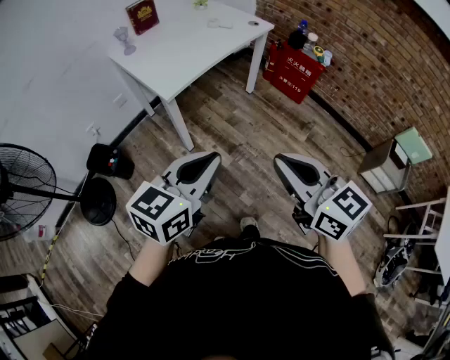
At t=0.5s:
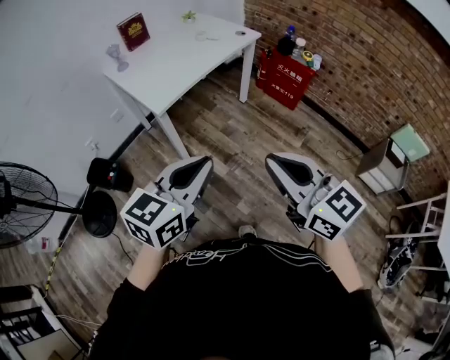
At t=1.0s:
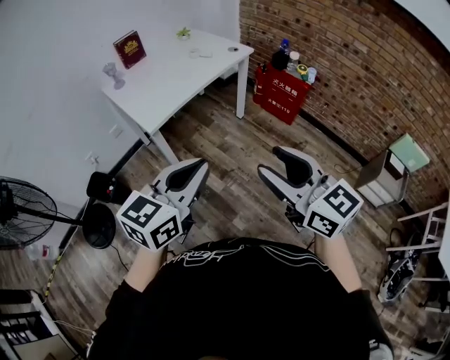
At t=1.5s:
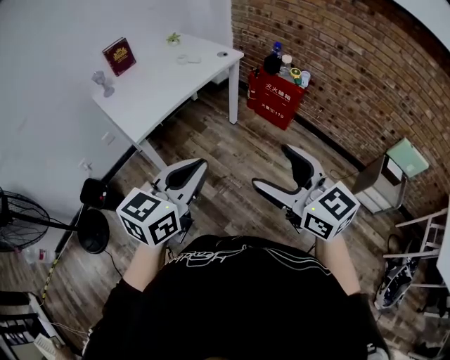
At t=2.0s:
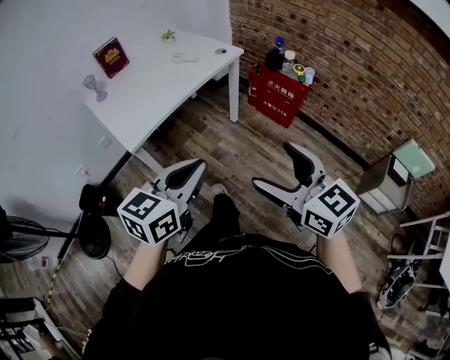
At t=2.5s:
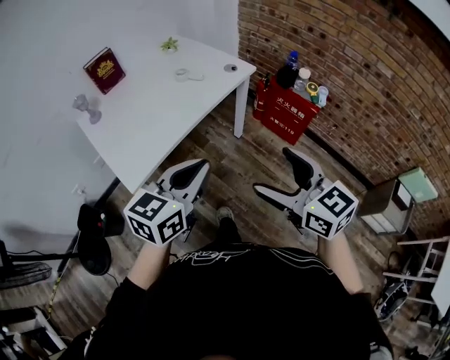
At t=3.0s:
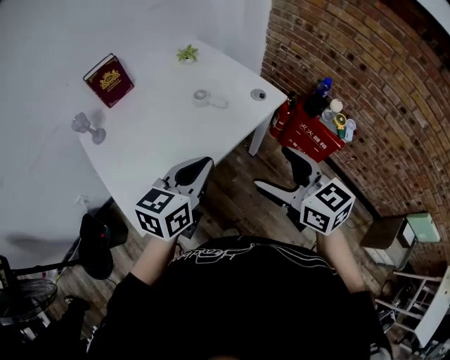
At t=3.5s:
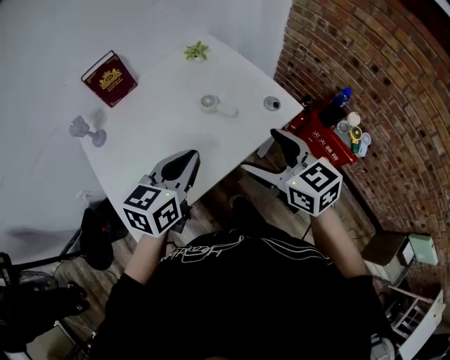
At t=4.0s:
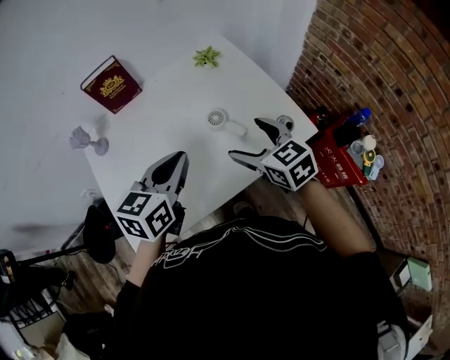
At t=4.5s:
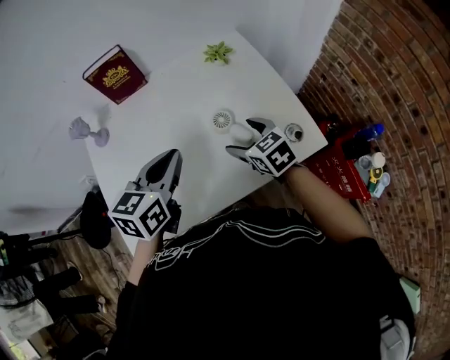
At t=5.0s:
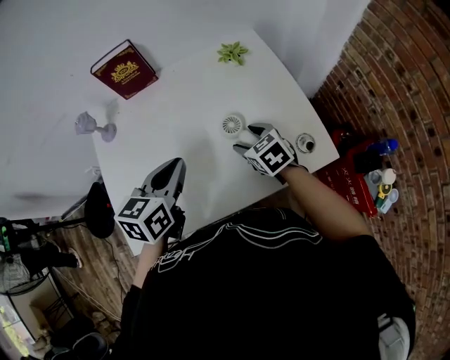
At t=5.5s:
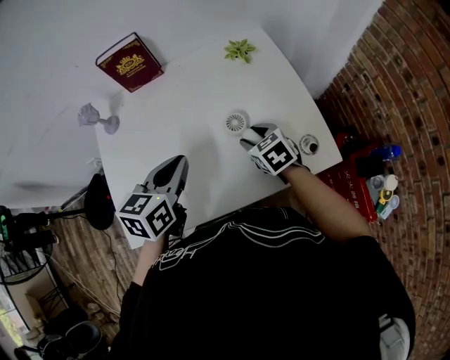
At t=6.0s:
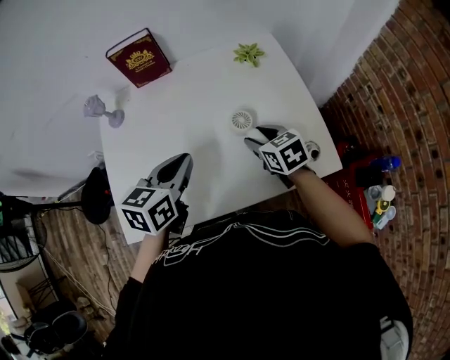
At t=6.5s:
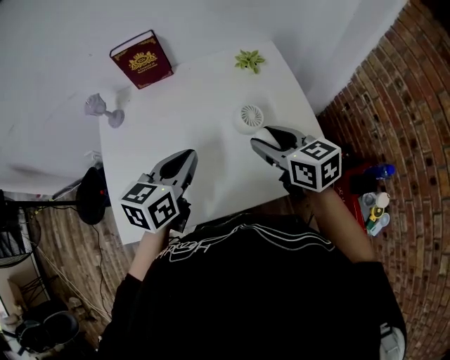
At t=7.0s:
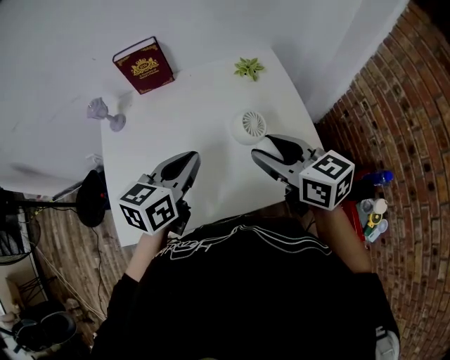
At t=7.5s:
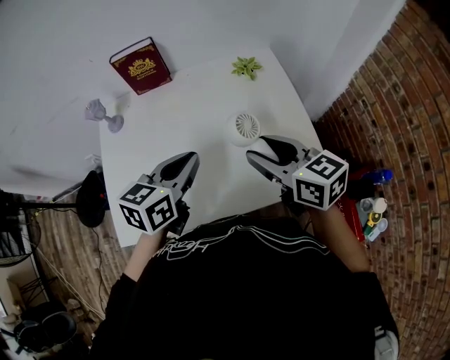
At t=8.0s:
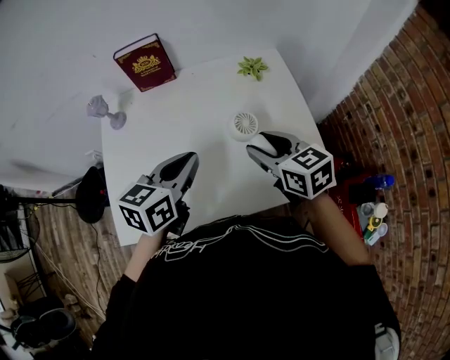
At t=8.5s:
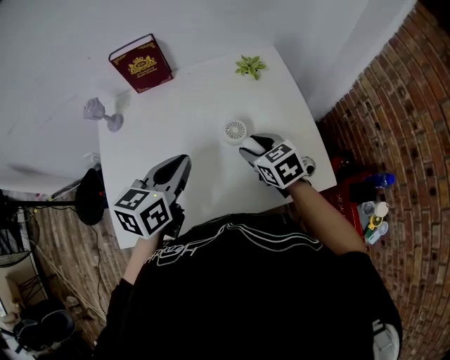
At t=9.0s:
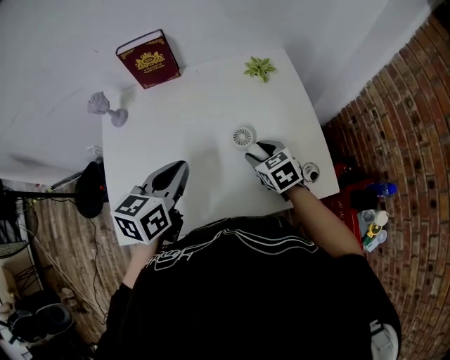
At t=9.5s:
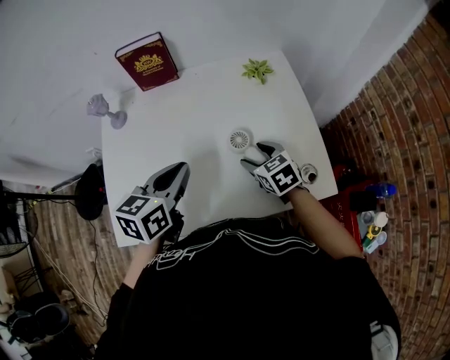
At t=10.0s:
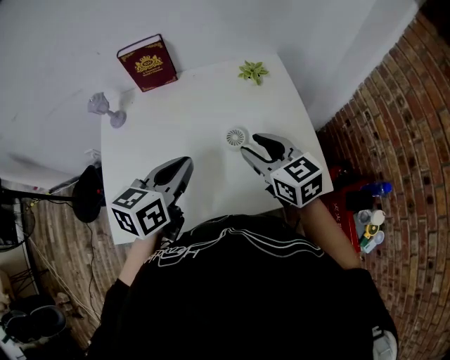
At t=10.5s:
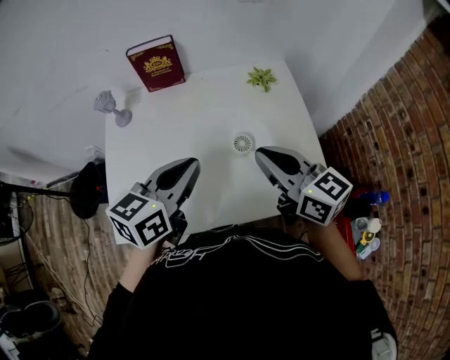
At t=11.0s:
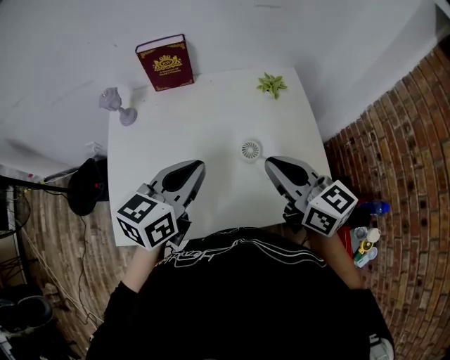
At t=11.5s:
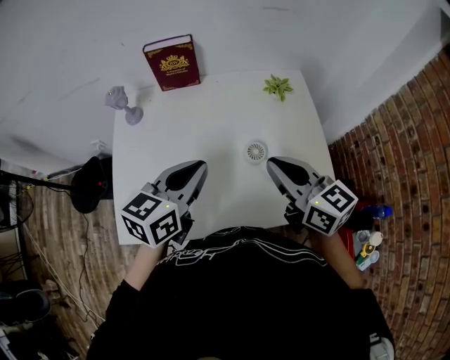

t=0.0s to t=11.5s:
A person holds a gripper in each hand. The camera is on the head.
t=0.0s to t=2.0s: Both grippers move to the right and forward, about 20 cm. The right gripper opens.
t=2.0s to t=4.0s: The pair of grippers is taken approximately 60 cm. The right gripper rotates some 30 degrees. The left gripper changes its angle by some 30 degrees.
t=4.0s to t=6.0s: The right gripper moves downward and forward, some 15 cm, and closes up. The left gripper moves downward, about 5 cm.
t=6.0s to t=7.5s: The right gripper heads upward, covering roughly 15 cm, and swivels approximately 20 degrees. Meanwhile the left gripper shifts by roughly 5 cm.
t=7.5s to t=9.5s: The right gripper moves downward, approximately 20 cm, and swivels roughly 30 degrees. Meanwhile the left gripper moves approximately 5 cm.
t=9.5s to t=11.5s: The right gripper moves upward, about 20 cm, tips its fingers upward by some 30 degrees, and closes up.

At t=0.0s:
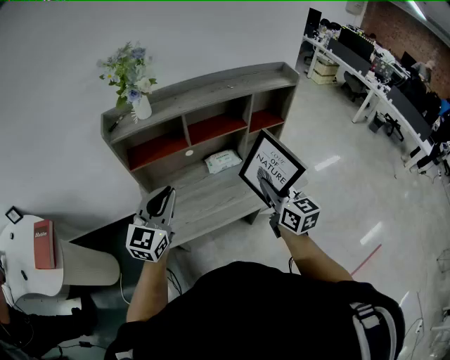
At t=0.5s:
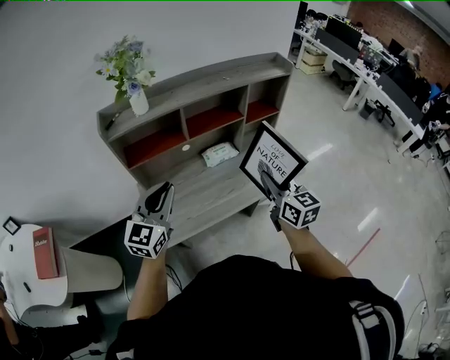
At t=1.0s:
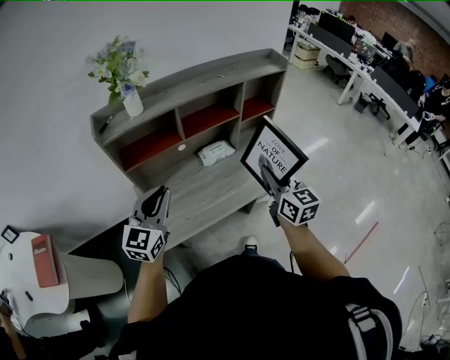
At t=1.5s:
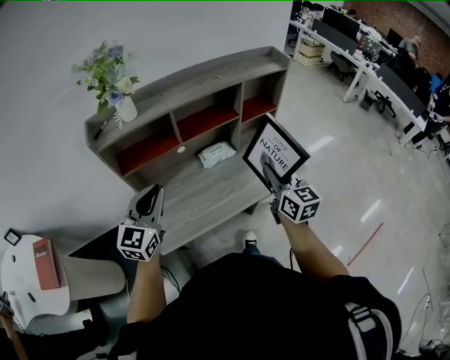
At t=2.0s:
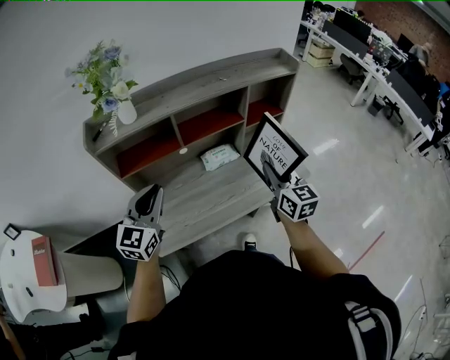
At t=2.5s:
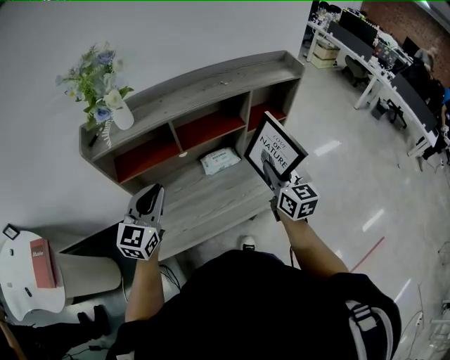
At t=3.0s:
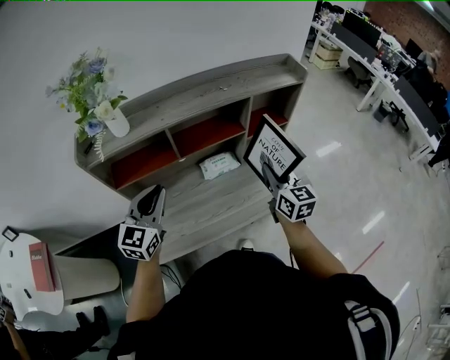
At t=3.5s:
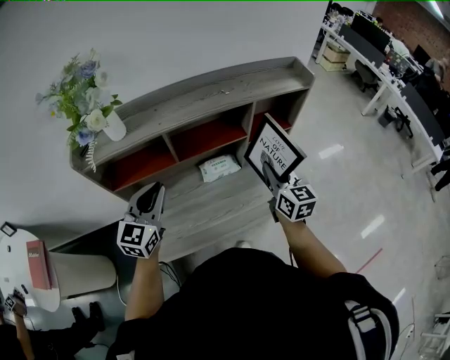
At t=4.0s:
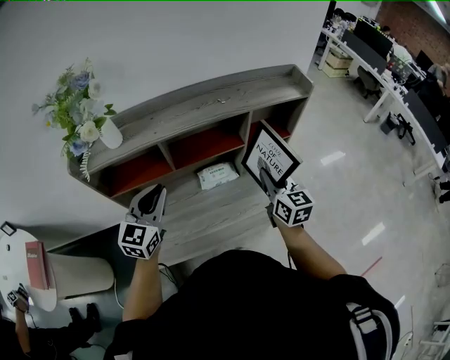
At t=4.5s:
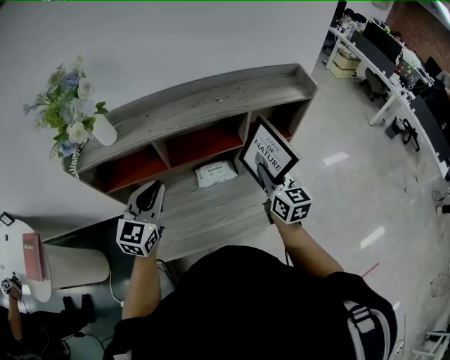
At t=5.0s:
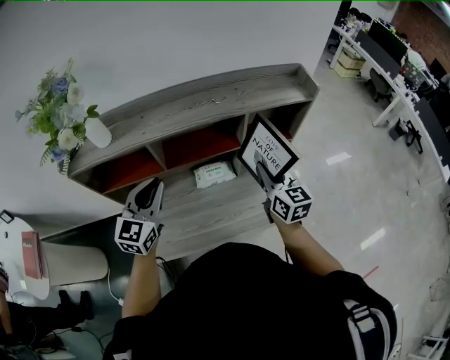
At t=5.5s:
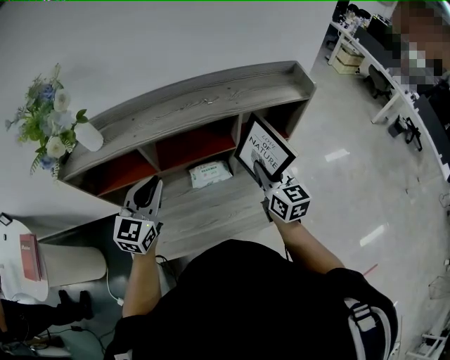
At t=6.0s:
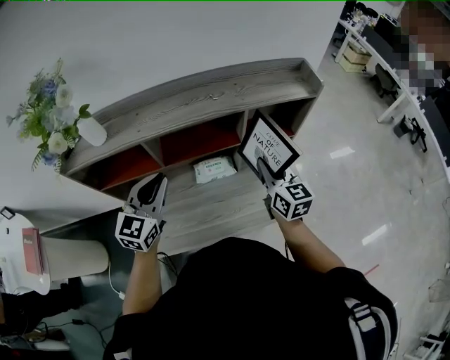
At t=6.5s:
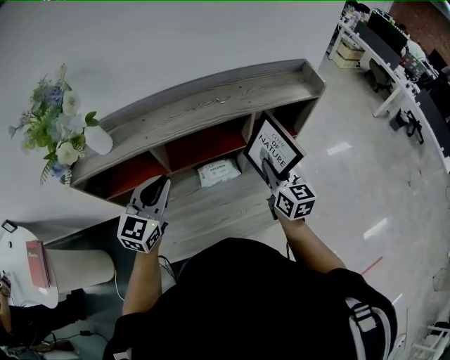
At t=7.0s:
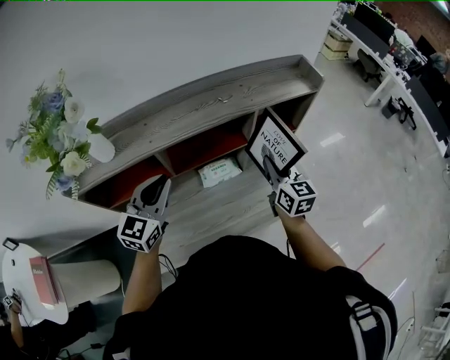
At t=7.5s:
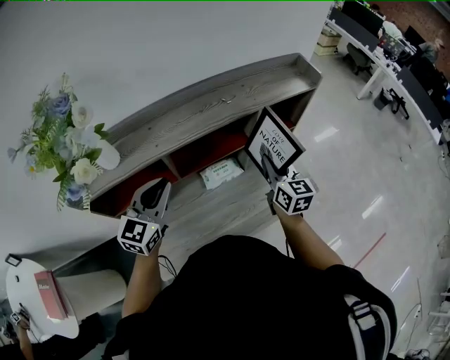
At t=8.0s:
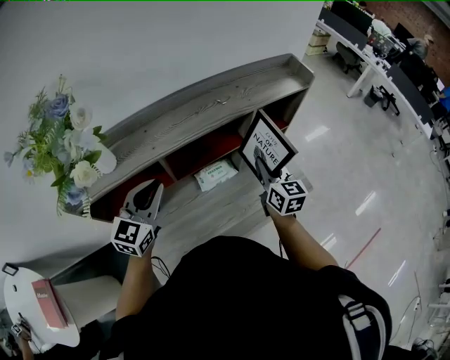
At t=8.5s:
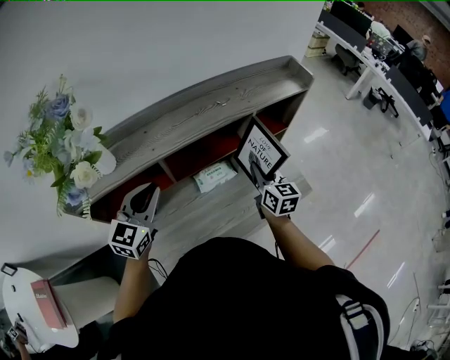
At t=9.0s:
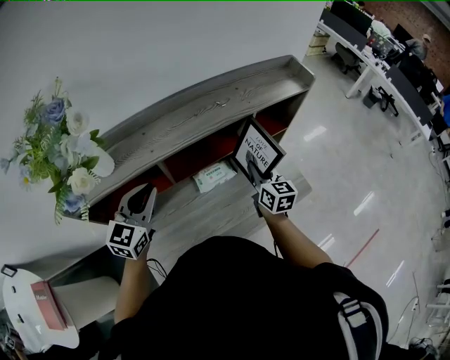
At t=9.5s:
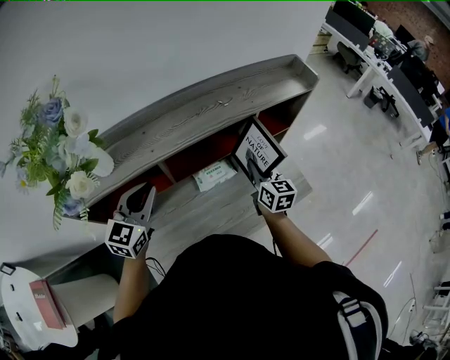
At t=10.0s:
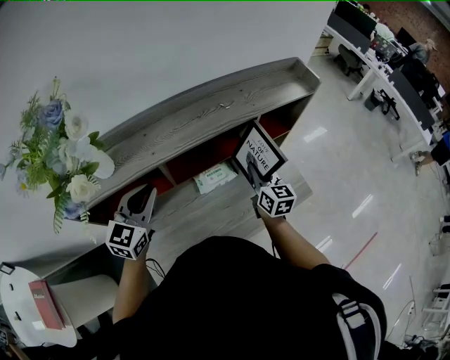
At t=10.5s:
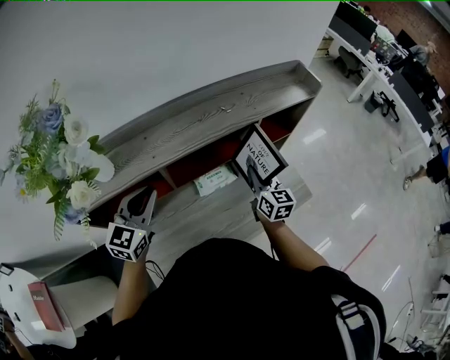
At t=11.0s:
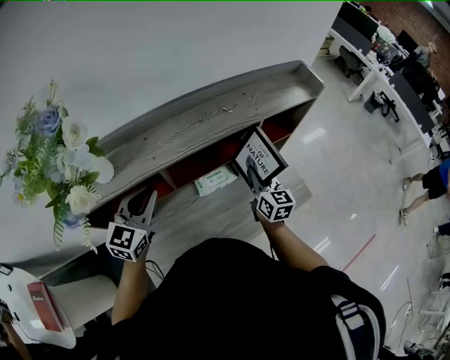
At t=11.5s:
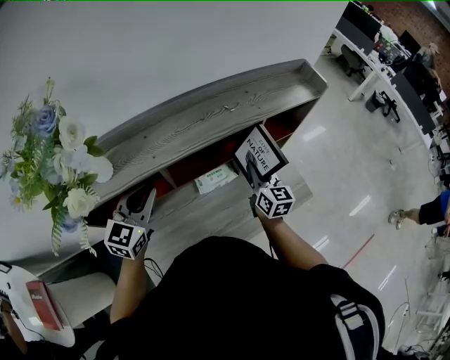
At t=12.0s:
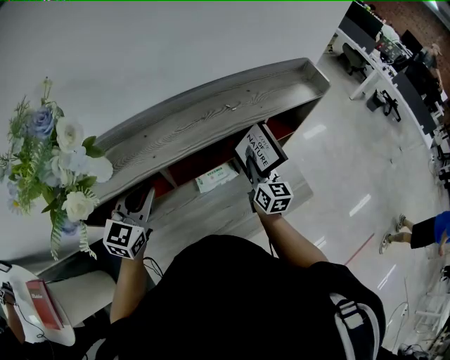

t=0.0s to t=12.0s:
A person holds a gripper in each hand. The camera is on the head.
t=0.0s to t=2.0s: Both grippers move forward, some 10 cm.
t=2.0s to t=4.0s: The left gripper is displaced forward and to the right by about 15 cm. Meanwhile the right gripper moves forward, some 15 cm.
t=4.0s to t=6.0s: The right gripper travels forward by about 5 cm. The left gripper travels to the right by about 5 cm.
t=6.0s to t=8.0s: The left gripper goes about 10 cm to the left, while the right gripper is displaced to the left by about 5 cm.
t=8.0s to t=10.0s: The right gripper shifts by about 5 cm.
t=10.0s to t=12.0s: The grippers make only small movements.

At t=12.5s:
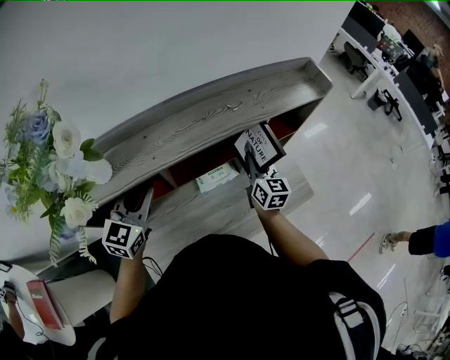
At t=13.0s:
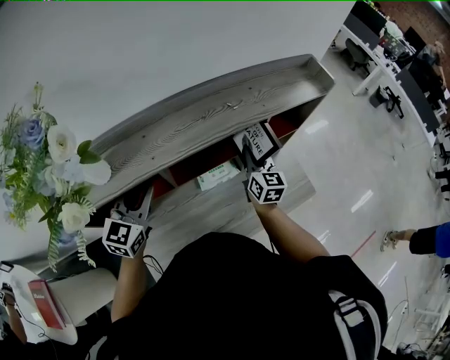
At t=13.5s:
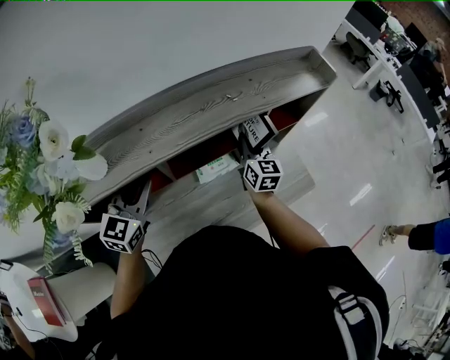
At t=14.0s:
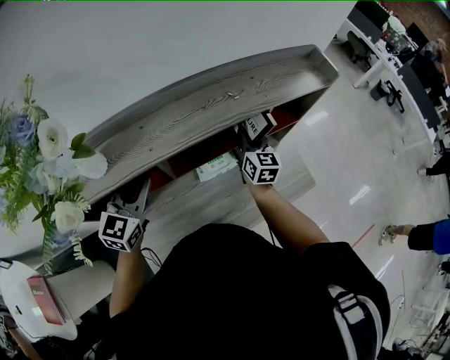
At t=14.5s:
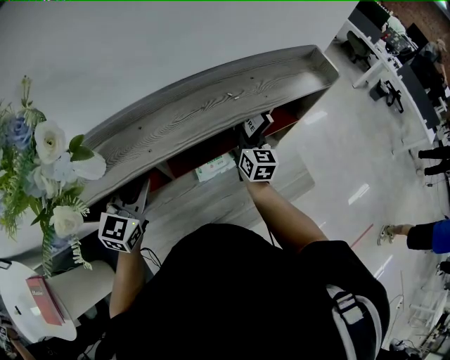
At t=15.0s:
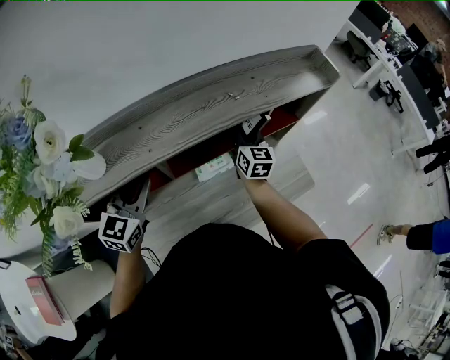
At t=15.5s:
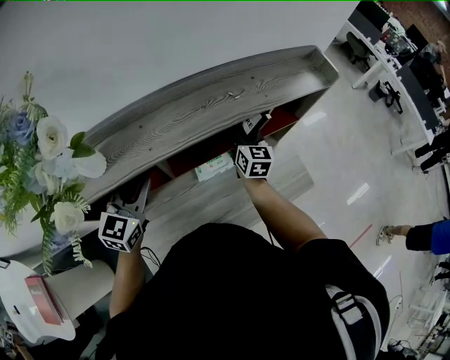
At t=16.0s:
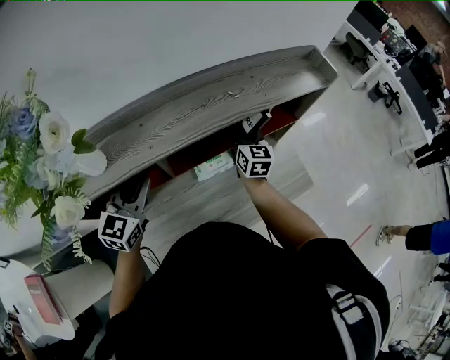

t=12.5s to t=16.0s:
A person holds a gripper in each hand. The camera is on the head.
t=12.5s to t=14.5s: The right gripper moves forward, approximately 5 cm.
t=14.5s to t=16.0s: Both grippers stay put.
